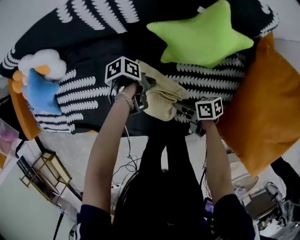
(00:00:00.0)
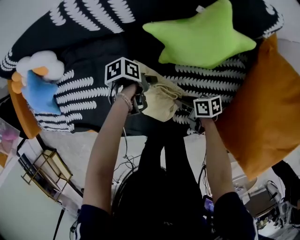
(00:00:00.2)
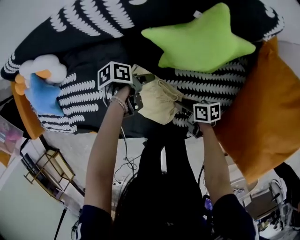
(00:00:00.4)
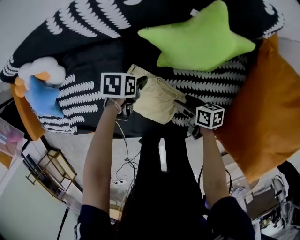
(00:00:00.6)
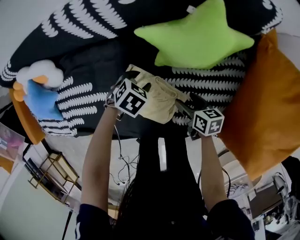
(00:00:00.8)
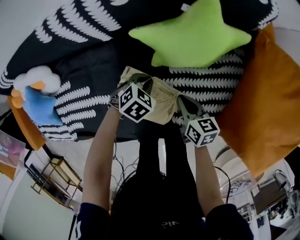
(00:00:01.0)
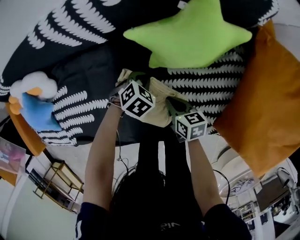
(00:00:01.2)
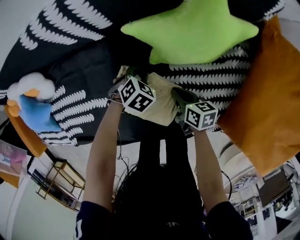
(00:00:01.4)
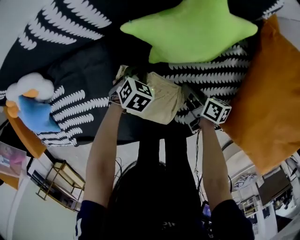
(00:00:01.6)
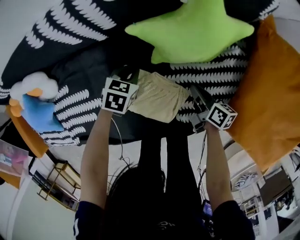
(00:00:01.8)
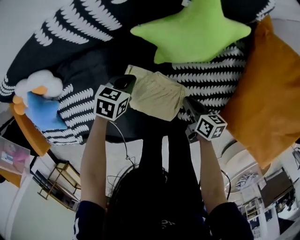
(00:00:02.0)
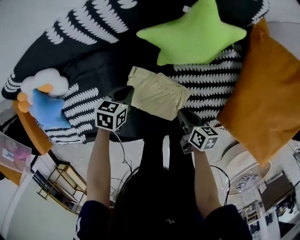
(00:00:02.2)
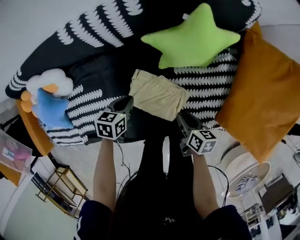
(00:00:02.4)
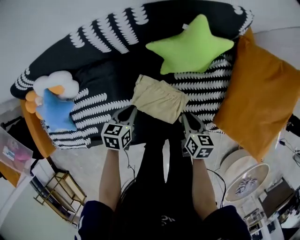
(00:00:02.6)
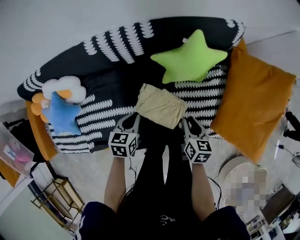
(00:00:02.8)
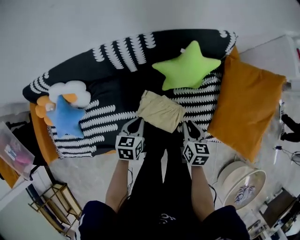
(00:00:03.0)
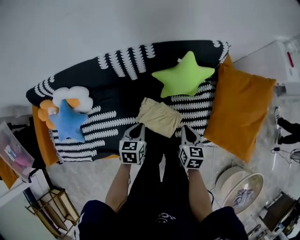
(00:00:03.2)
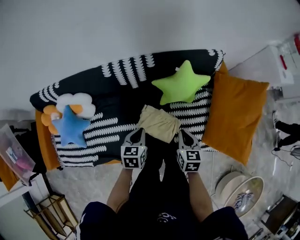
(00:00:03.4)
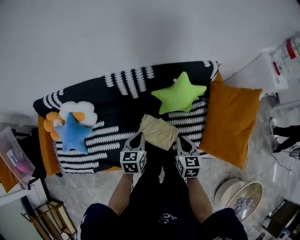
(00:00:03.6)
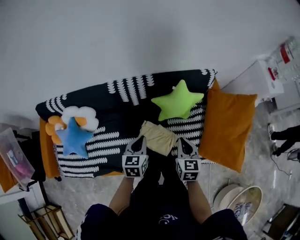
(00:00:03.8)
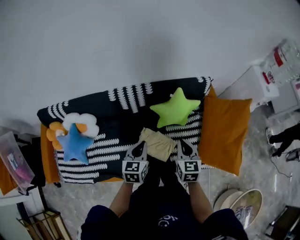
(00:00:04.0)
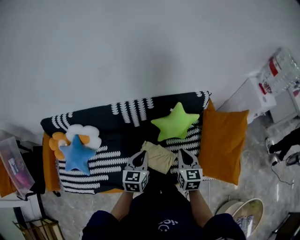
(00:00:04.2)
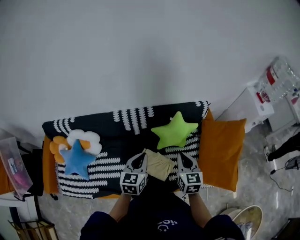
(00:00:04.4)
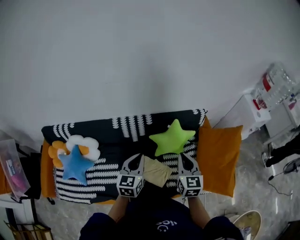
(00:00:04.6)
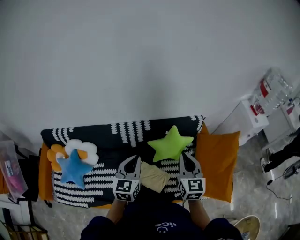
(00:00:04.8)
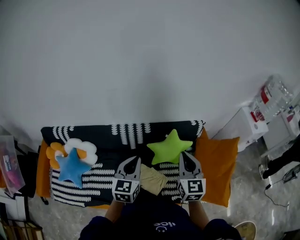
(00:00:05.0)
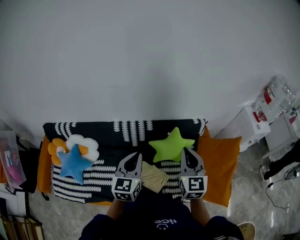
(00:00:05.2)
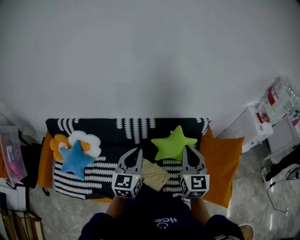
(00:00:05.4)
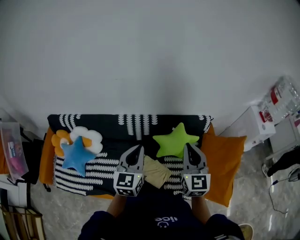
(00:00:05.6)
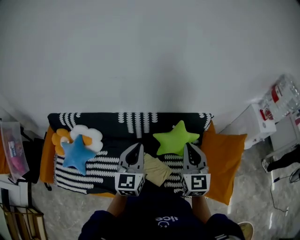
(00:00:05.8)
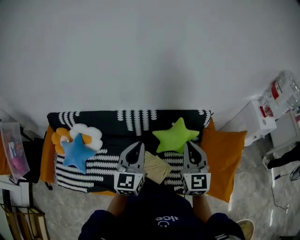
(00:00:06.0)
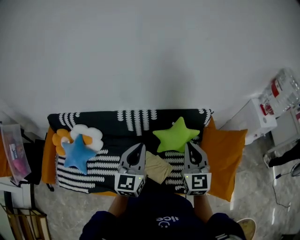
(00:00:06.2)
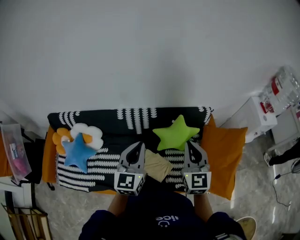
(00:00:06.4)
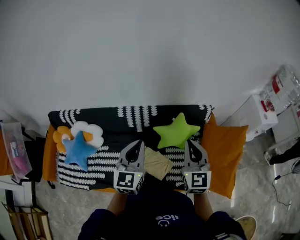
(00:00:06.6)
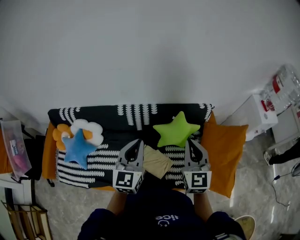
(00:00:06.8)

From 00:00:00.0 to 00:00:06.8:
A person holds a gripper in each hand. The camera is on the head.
From 00:00:00.0 to 00:00:01.4: The left gripper goes some 10 cm downward, twists roughly 90 degrees clockwise, seen from behind, and opens, then closes once more. Meanwhile the right gripper goes up and down, some 5 cm each way, reversing 2 times, rotates about 30 degrees, and opens and closes again.
From 00:00:01.4 to 00:00:02.8: Both grippers move upward, approximately 25 cm. The left gripper rotates around the line of its fingers by some 40 degrees, counterclockwise from behind; the right gripper changes its angle by roughly 30 degrees.
From 00:00:02.8 to 00:00:04.0: The two grippers go about 20 cm upward. The left gripper rotates about 20 degrees. The right gripper rotates roughly 30 degrees.
From 00:00:04.0 to 00:00:05.4: The two grippers go approximately 20 cm upward. The right gripper turns by approximately 30 degrees. Meanwhile the left gripper turns by approximately 20 degrees.
From 00:00:05.4 to 00:00:06.8: The grippers move only a little.

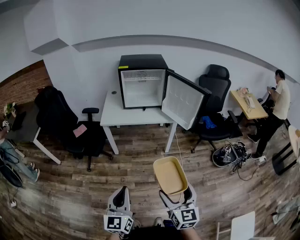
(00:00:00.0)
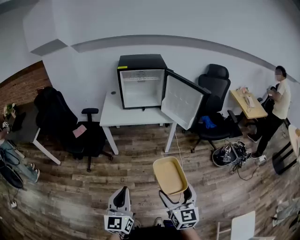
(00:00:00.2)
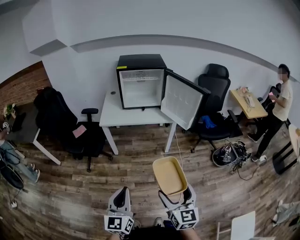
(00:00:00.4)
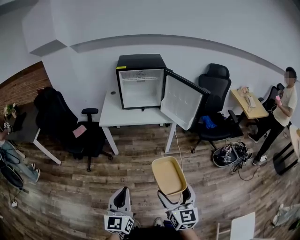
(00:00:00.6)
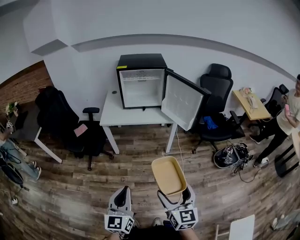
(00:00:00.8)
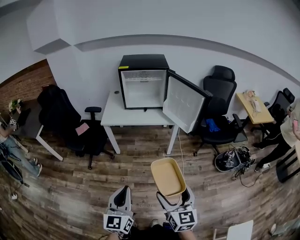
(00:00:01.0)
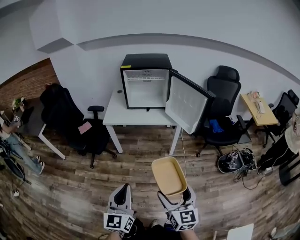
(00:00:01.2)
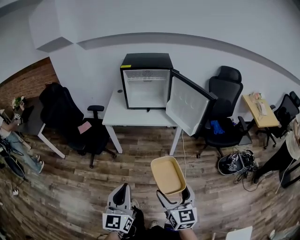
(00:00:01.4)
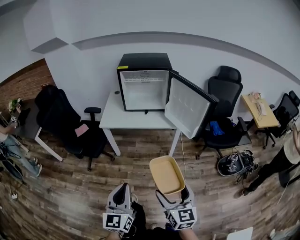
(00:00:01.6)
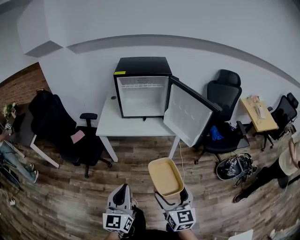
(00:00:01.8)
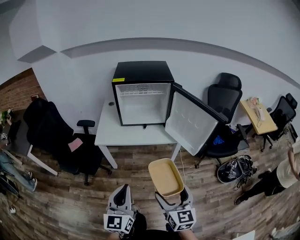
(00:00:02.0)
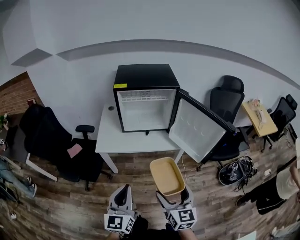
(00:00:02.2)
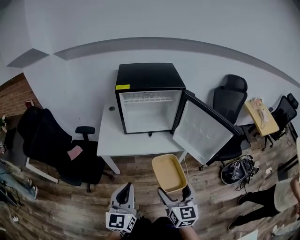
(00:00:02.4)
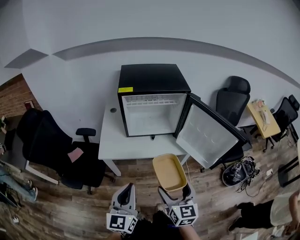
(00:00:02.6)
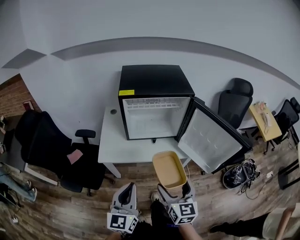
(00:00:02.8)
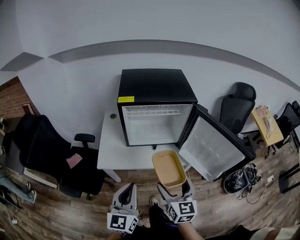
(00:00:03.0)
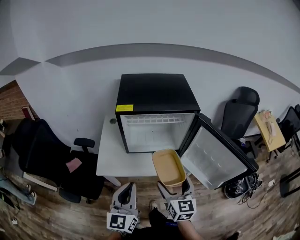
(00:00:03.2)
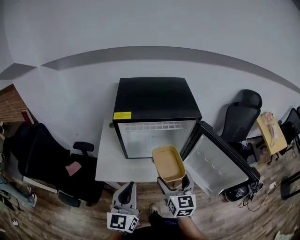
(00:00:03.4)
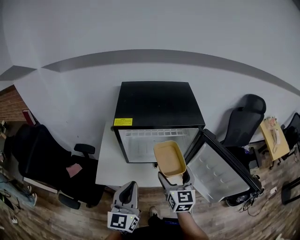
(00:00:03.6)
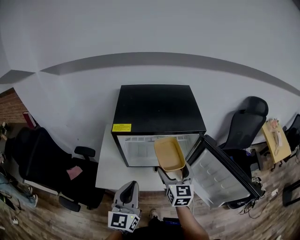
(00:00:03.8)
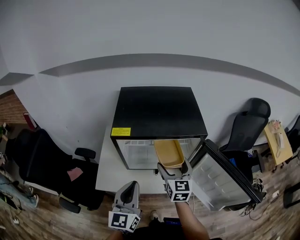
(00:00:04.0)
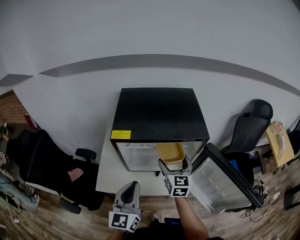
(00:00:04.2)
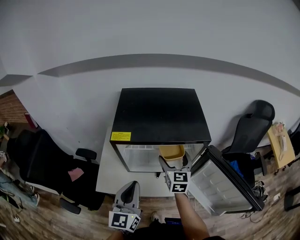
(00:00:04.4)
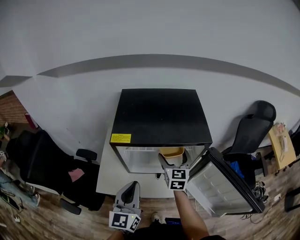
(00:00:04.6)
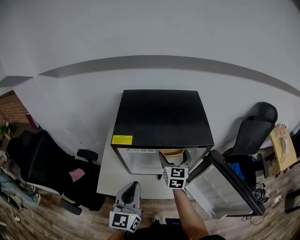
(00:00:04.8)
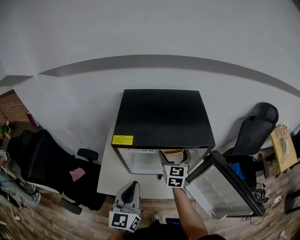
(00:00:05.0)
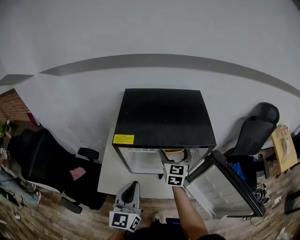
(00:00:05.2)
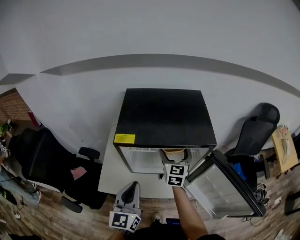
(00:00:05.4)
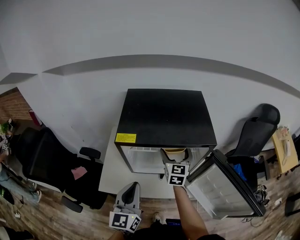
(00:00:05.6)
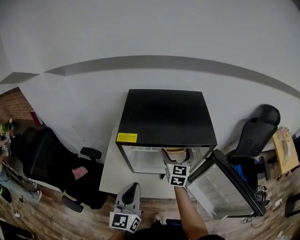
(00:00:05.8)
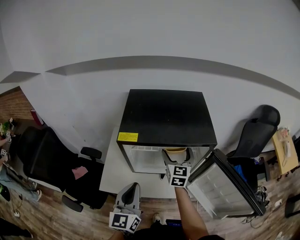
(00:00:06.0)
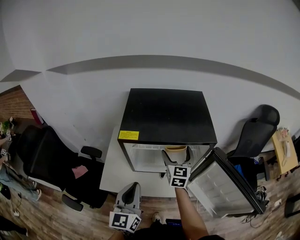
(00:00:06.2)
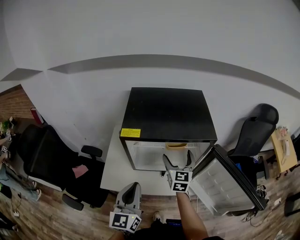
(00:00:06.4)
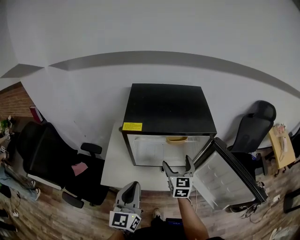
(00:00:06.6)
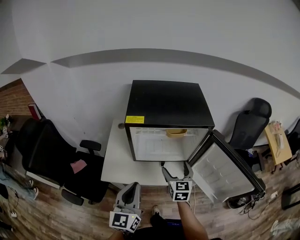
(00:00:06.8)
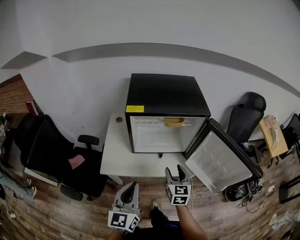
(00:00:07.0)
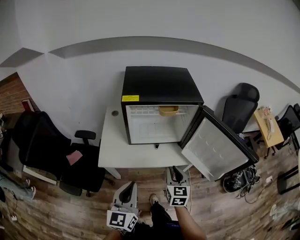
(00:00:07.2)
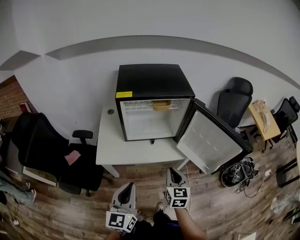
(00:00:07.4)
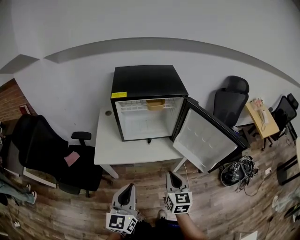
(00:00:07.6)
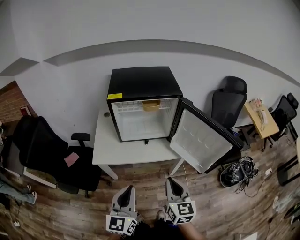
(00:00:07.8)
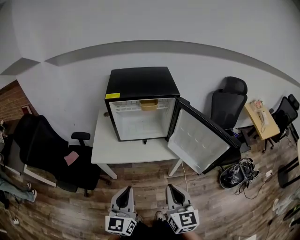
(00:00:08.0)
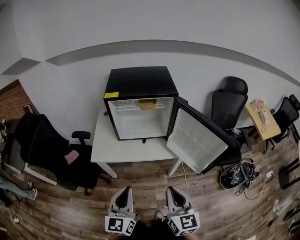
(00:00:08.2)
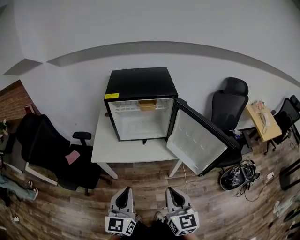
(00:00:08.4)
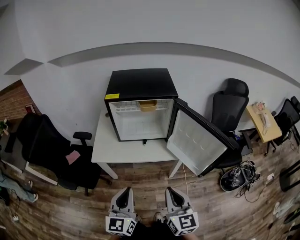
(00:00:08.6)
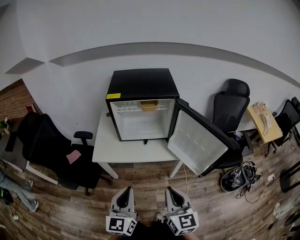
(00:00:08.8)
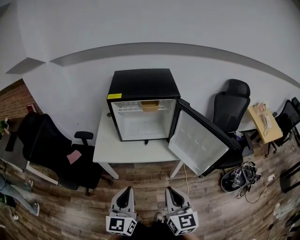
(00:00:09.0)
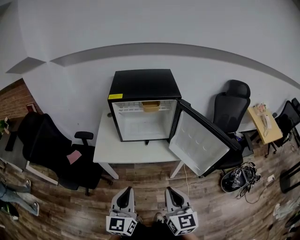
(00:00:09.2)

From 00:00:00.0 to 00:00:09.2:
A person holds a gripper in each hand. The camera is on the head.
From 00:00:00.0 to 00:00:01.6: The grippers both shift forward and to the right by about 15 cm.
From 00:00:01.6 to 00:00:03.0: Both grippers are carried forward, roughly 40 cm.
From 00:00:03.0 to 00:00:04.6: The left gripper shifts roughly 25 cm forward. The right gripper moves forward, approximately 40 cm.
From 00:00:04.6 to 00:00:06.2: The grippers move only a little.
From 00:00:06.2 to 00:00:07.6: The left gripper shifts approximately 25 cm backward, while the right gripper heads backward, covering approximately 40 cm, and closes up.
From 00:00:07.6 to 00:00:09.2: The right gripper moves backward and upward, some 15 cm. Meanwhile the left gripper ends up roughly 5 cm from where it was.

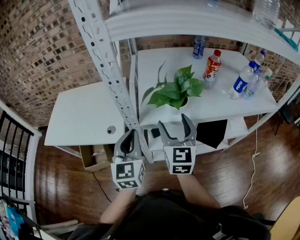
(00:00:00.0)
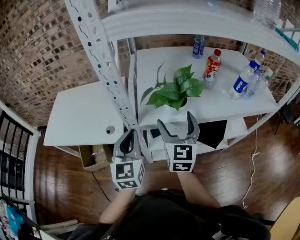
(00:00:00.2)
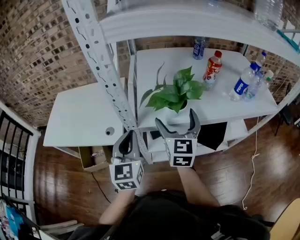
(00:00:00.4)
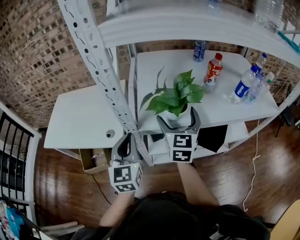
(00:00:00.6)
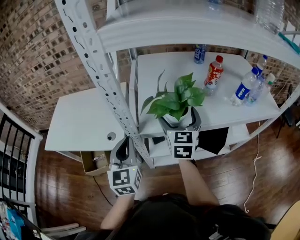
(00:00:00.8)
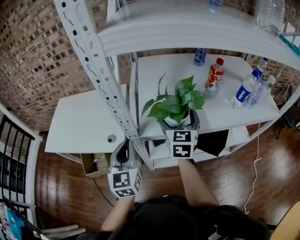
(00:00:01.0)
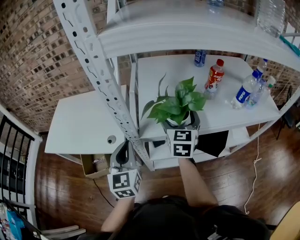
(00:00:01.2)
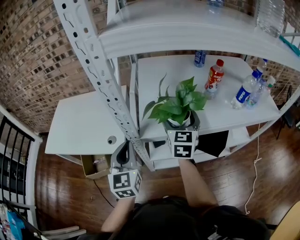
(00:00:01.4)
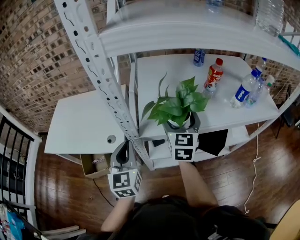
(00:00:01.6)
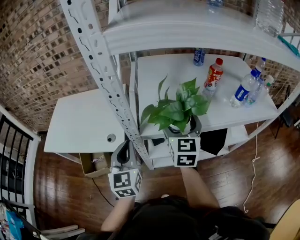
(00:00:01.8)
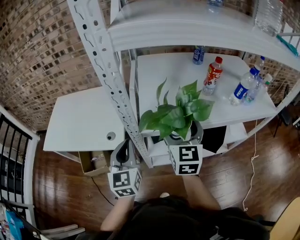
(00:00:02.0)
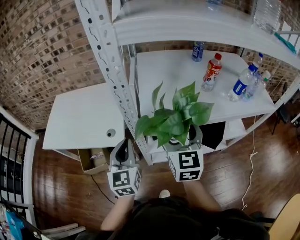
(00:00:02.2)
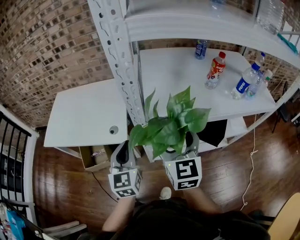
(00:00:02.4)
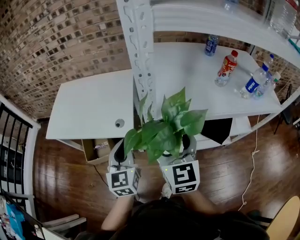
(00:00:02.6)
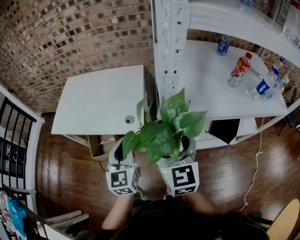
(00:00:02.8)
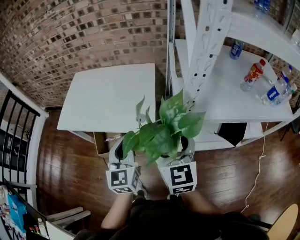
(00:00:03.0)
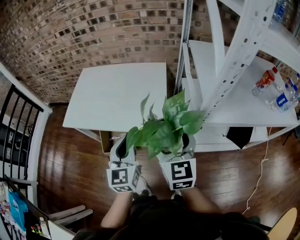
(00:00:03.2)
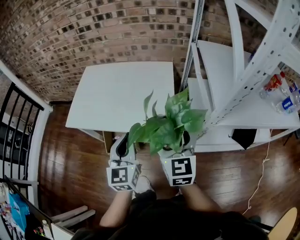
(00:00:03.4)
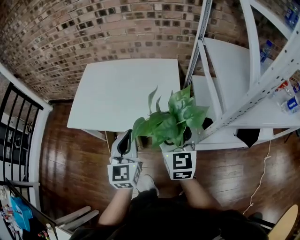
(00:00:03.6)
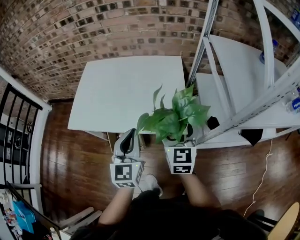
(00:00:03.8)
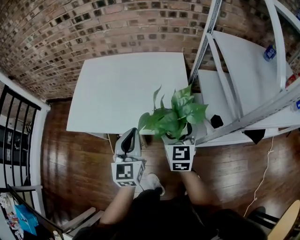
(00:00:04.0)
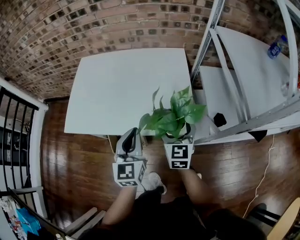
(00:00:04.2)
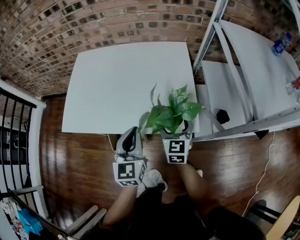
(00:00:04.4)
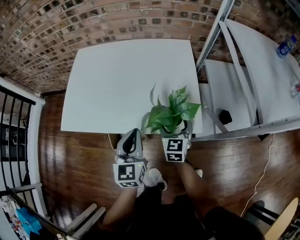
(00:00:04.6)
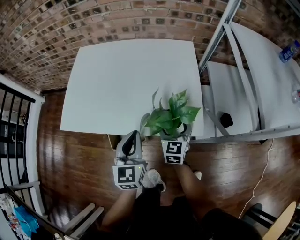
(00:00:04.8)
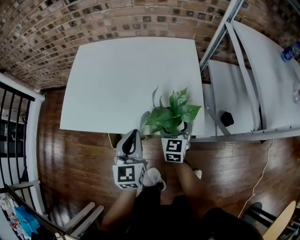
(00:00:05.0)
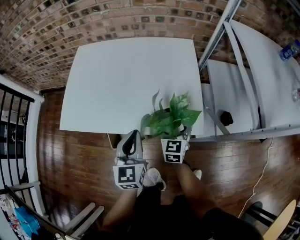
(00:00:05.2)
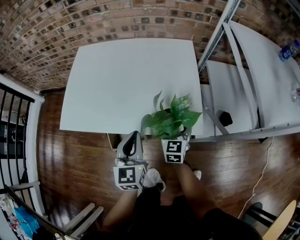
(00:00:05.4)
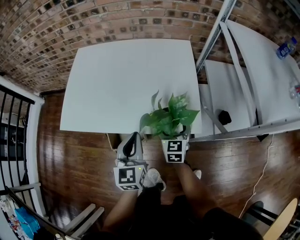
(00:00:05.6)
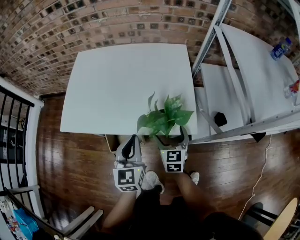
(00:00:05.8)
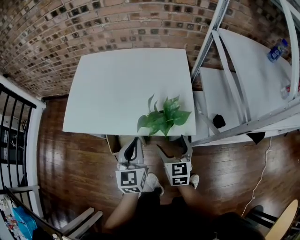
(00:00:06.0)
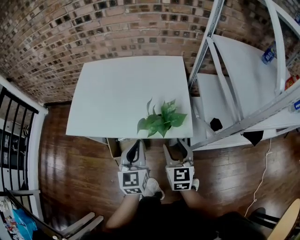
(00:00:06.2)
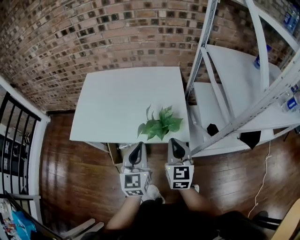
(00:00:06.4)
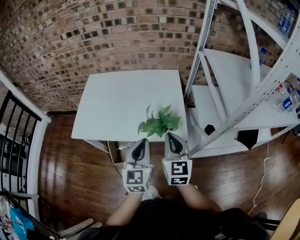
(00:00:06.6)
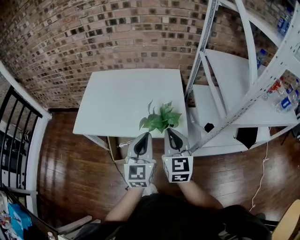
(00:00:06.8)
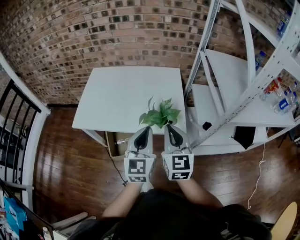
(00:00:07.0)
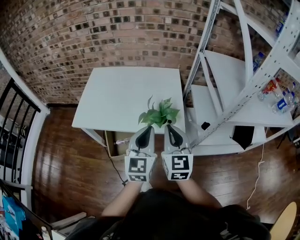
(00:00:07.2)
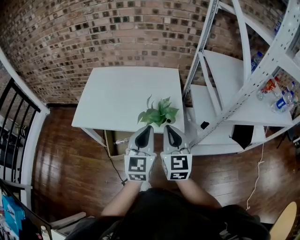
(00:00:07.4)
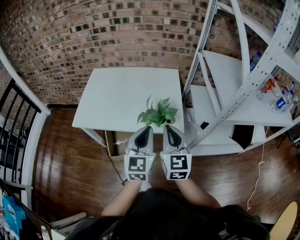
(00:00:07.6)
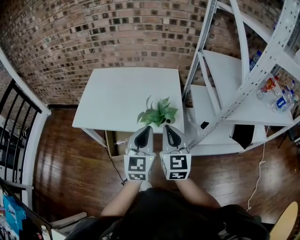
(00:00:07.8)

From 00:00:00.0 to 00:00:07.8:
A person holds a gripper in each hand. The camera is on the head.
From 00:00:00.0 to 00:00:01.6: The right gripper shifts some 10 cm forward.
From 00:00:01.6 to 00:00:03.2: The grippers both shift to the left by approximately 30 cm. The right gripper turns by some 20 degrees.
From 00:00:03.2 to 00:00:04.6: The left gripper is displaced downward, to the left and forward by roughly 25 cm. Meanwhile the right gripper goes about 35 cm downward, forward and to the left.
From 00:00:04.6 to 00:00:06.2: The right gripper is displaced backward and upward by roughly 15 cm, and closes up. The left gripper heads backward, covering approximately 5 cm.
From 00:00:06.2 to 00:00:07.8: The right gripper shifts about 15 cm upward, and closes its fingers. Meanwhile the left gripper heads upward, to the right and backward, covering some 15 cm.
